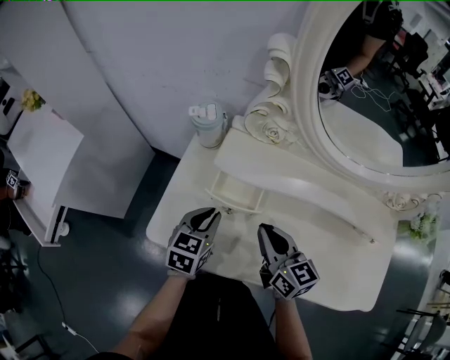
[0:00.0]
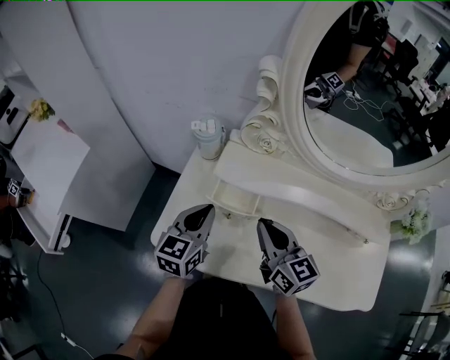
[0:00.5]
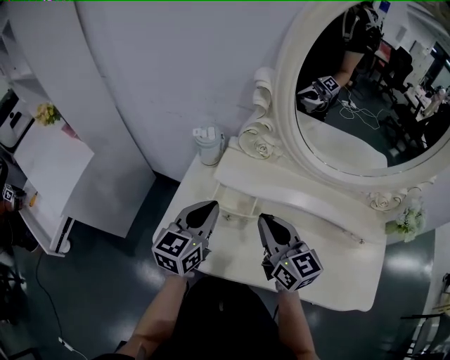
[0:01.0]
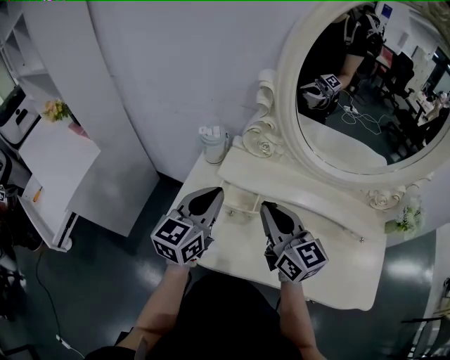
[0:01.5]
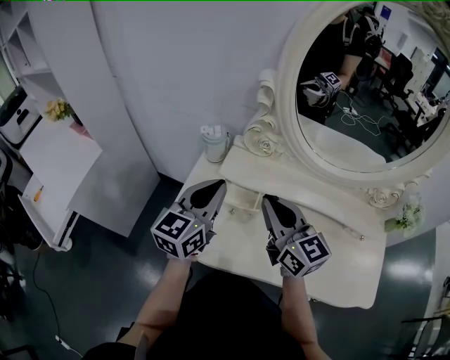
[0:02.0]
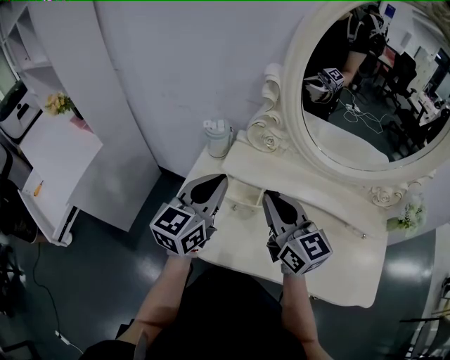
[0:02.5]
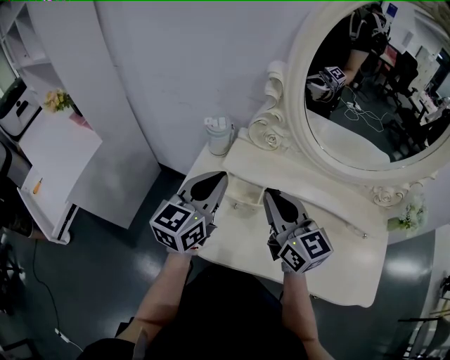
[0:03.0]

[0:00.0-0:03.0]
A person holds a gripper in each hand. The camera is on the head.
0:00.0 to 0:01.5: Both grippers move upward, some 15 cm. The left gripper swivels approximately 30 degrees.
0:01.5 to 0:03.0: There are only small adjustments of the grippers.

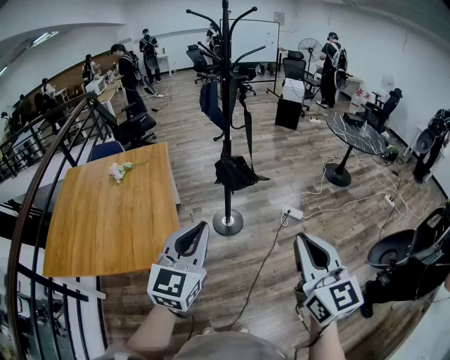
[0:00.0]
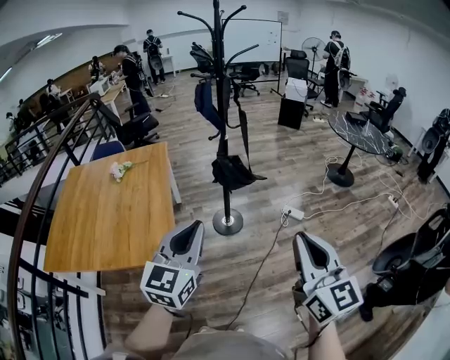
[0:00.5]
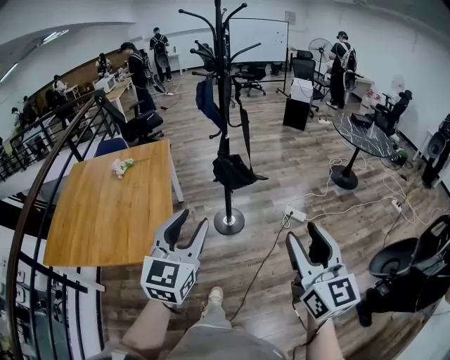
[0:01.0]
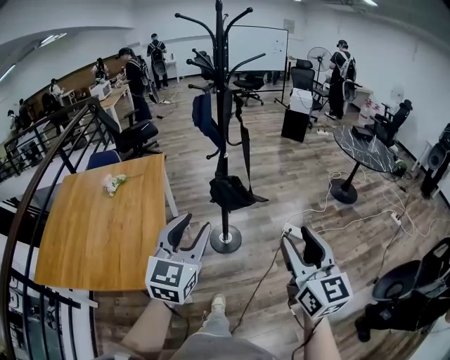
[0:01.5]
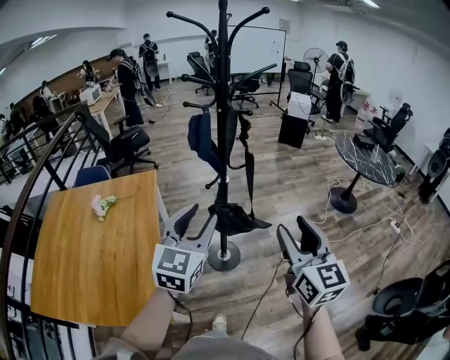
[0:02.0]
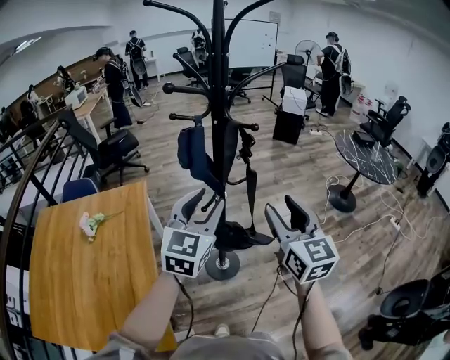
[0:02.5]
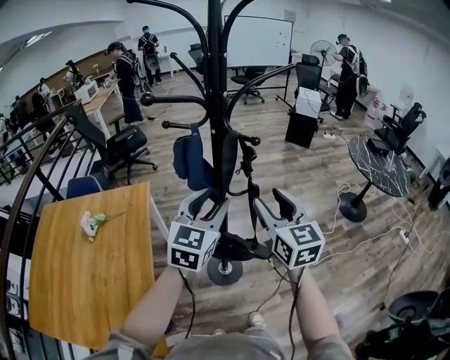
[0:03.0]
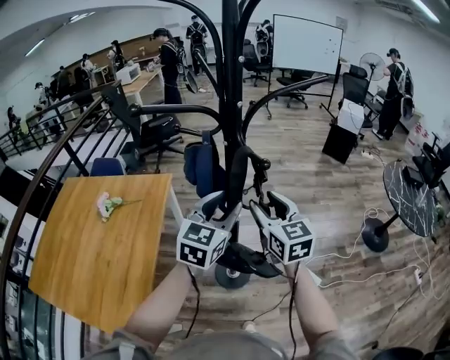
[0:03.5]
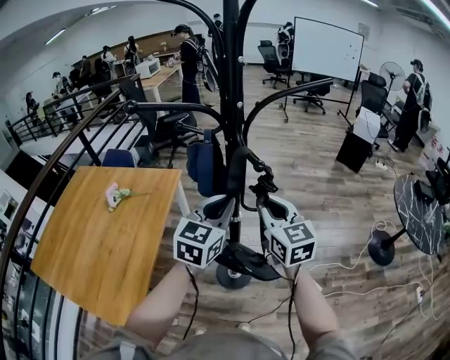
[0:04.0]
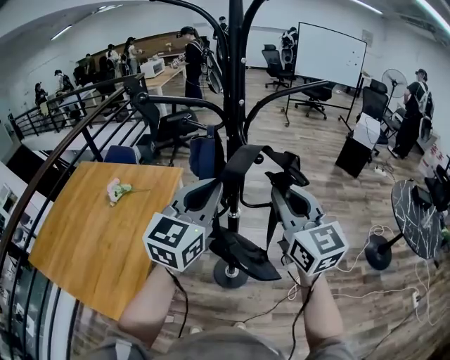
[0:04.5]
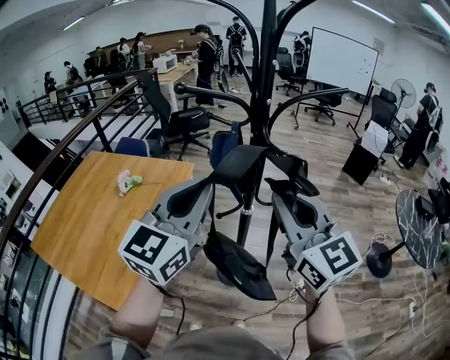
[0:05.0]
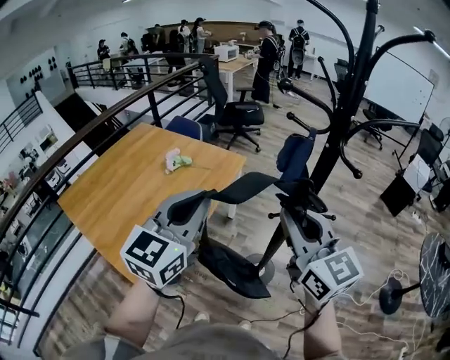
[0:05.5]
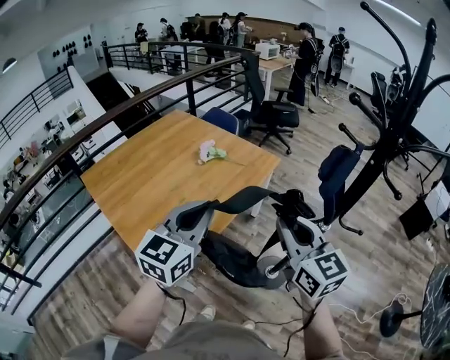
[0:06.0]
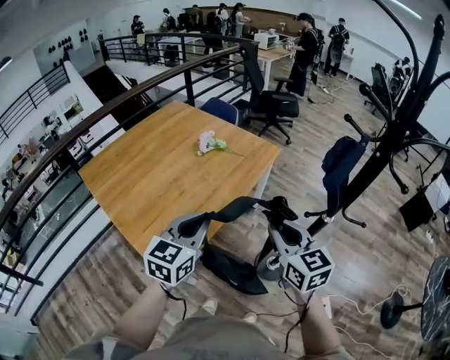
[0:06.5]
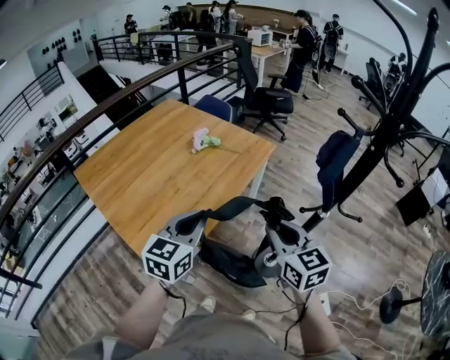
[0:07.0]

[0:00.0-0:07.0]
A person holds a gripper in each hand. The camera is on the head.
0:00.0 to 0:02.0: The two grippers go about 30 cm forward. The left gripper opens its fingers; the right gripper opens.
0:02.0 to 0:03.5: Both grippers move forward, about 30 cm. The right gripper turns by roughly 20 degrees.
0:03.5 to 0:05.0: The right gripper heads upward and backward, covering some 20 cm, rotates about 30 degrees, and closes. The left gripper travels upward, backward and to the left by roughly 20 cm, and closes its fingers.
0:05.0 to 0:07.0: Both grippers travel together to the left and downward, some 30 cm. The right gripper turns by roughly 30 degrees. Meanwhile the left gripper rotates approximately 40 degrees.

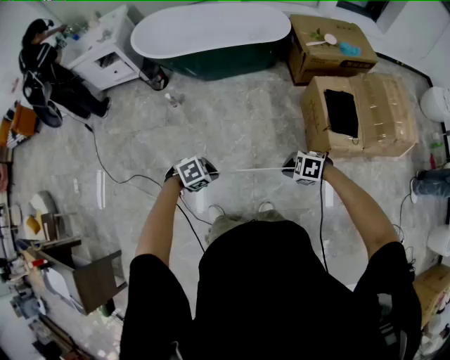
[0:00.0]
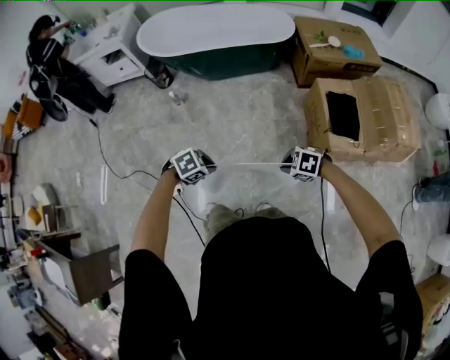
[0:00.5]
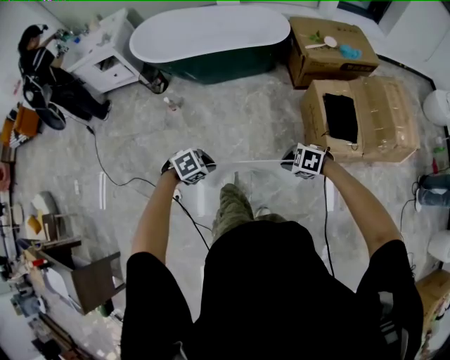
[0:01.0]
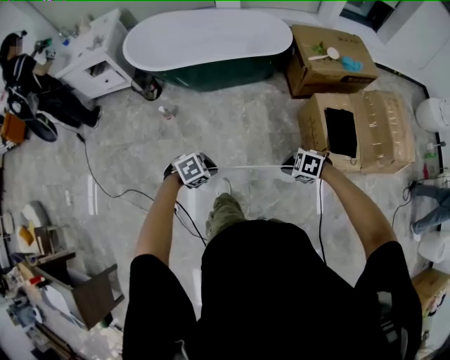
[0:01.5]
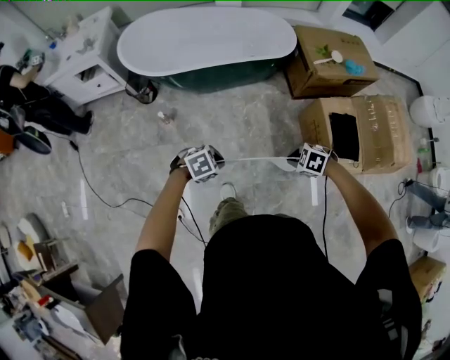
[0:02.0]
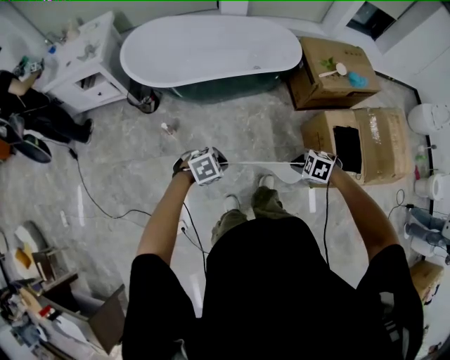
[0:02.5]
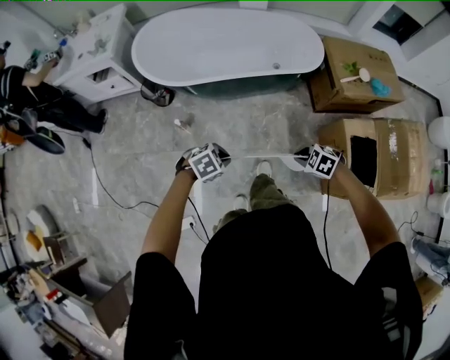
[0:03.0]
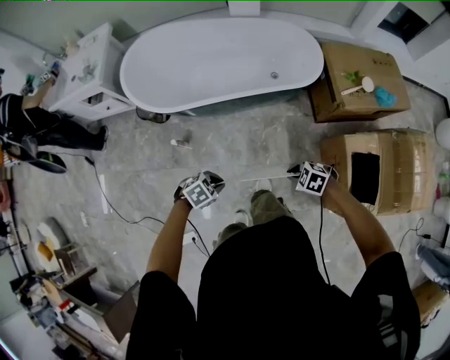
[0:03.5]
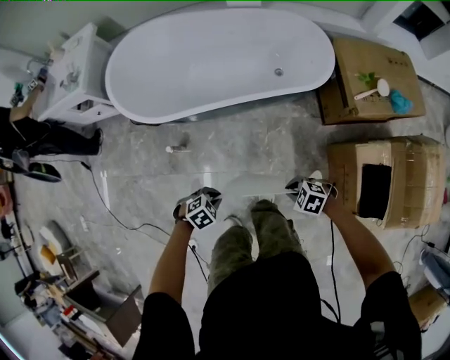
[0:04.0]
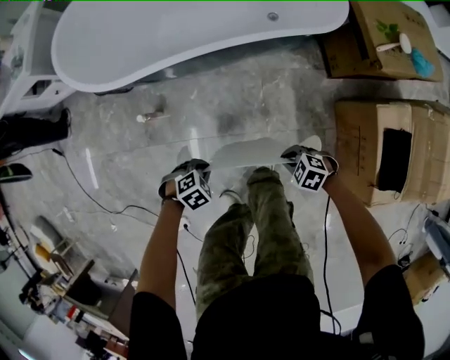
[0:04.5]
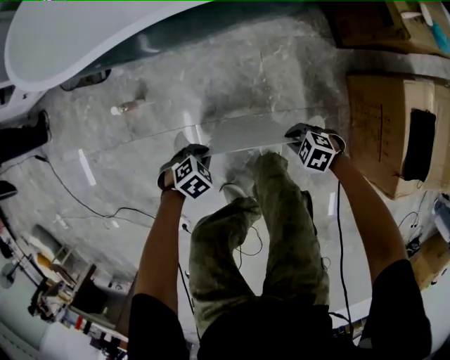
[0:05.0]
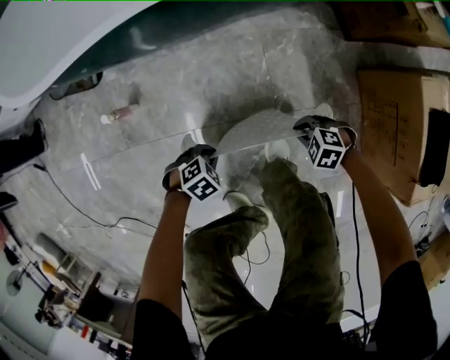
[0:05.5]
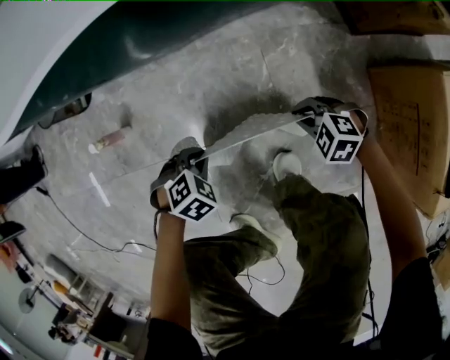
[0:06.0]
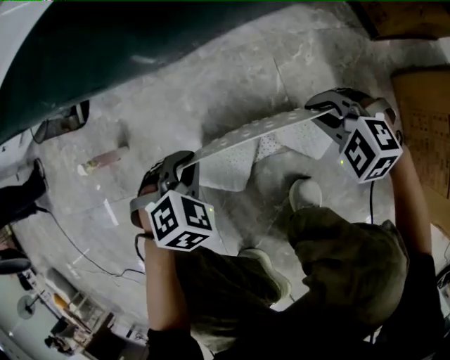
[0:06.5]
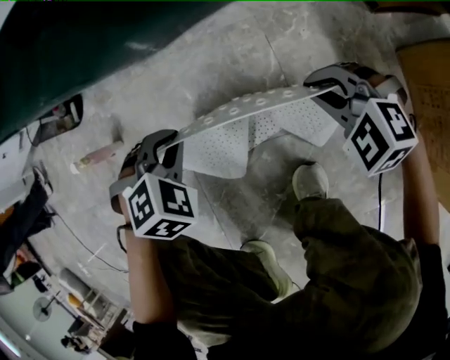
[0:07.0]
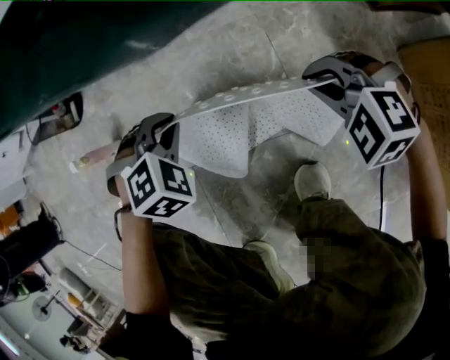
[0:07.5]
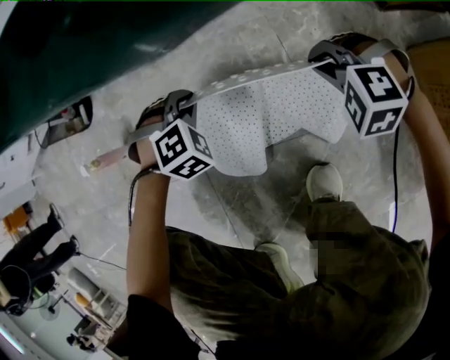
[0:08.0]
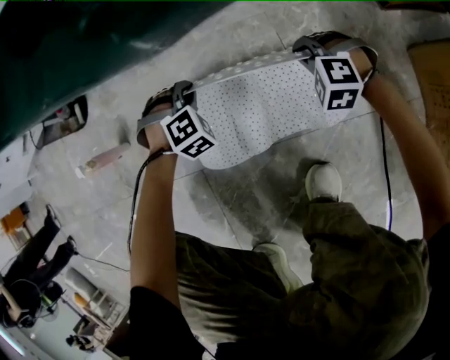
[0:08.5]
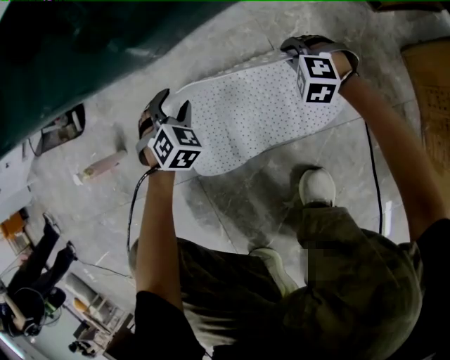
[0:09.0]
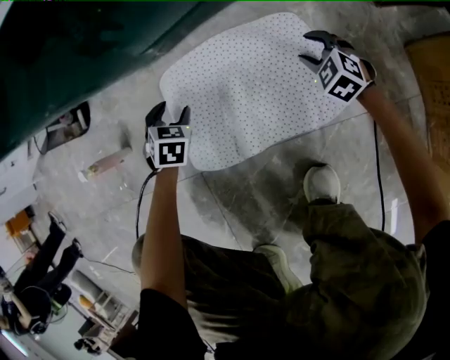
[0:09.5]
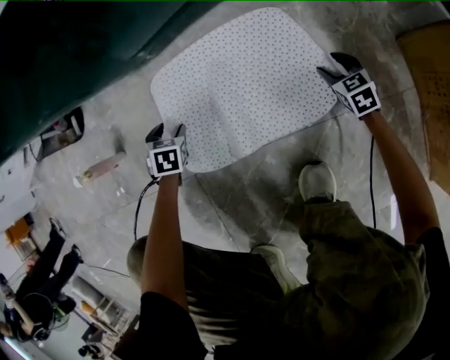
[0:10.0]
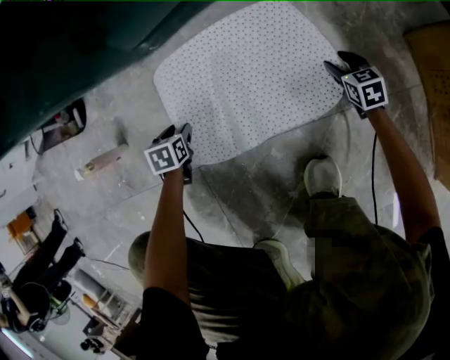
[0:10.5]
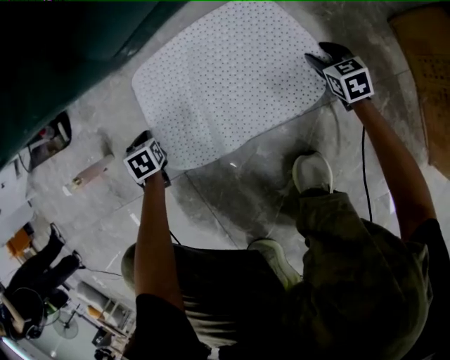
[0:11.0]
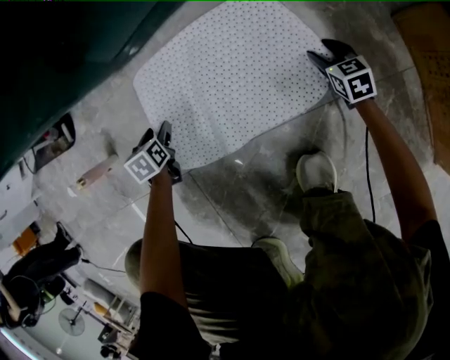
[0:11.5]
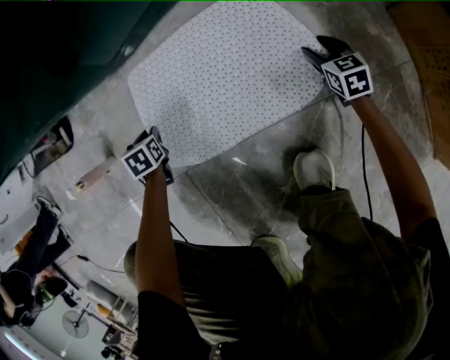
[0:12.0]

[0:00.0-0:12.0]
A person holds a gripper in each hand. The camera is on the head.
0:00.0 to 0:02.0: The left gripper moves approximately 30 cm, while the right gripper shifts by roughly 25 cm.
0:02.0 to 0:04.0: The right gripper moves some 30 cm; the left gripper changes place by about 30 cm.
0:04.0 to 0:06.0: The grippers both shift downward by some 50 cm.
0:06.0 to 0:08.0: The left gripper changes place by roughly 20 cm, and swivels approximately 30 degrees. The right gripper ends up about 10 cm from where it was, and changes its angle by approximately 30 degrees.
0:08.0 to 0:10.0: The right gripper is displaced downward and to the right by roughly 20 cm, twists roughly 70 degrees clockwise, seen from behind, and opens its fingers. Meanwhile the left gripper goes some 15 cm downward and to the left, rotates around the line of its fingers by some 60 degrees, counterclockwise from behind, and opens up.
0:10.0 to 0:12.0: The left gripper closes its fingers.

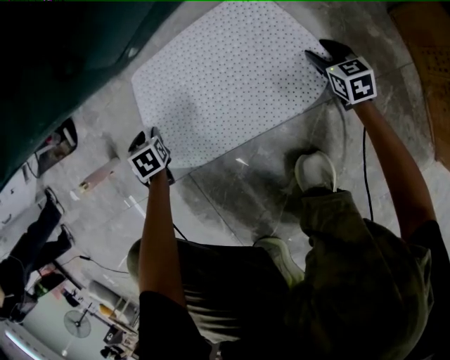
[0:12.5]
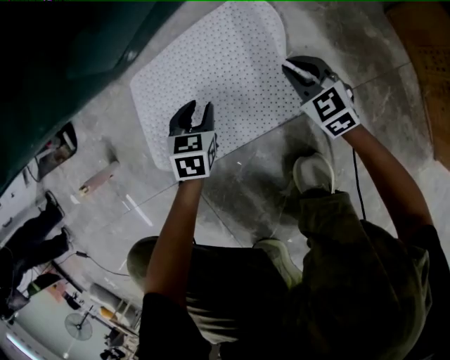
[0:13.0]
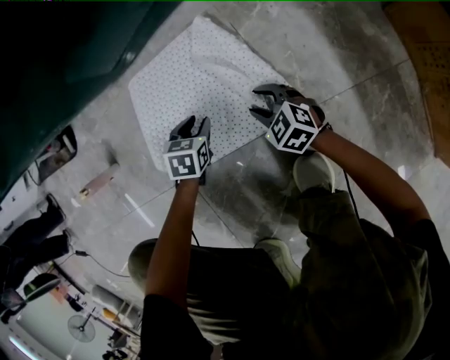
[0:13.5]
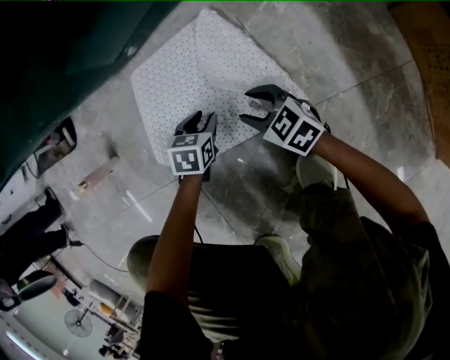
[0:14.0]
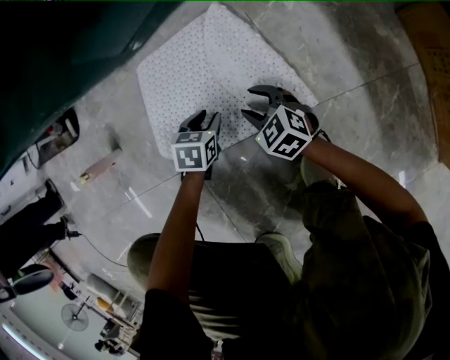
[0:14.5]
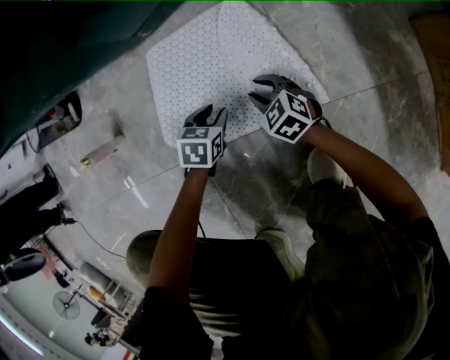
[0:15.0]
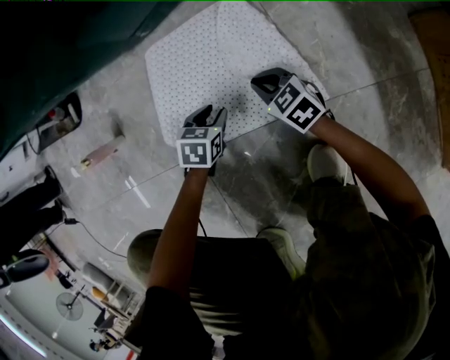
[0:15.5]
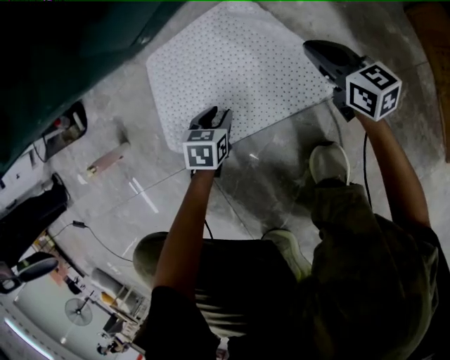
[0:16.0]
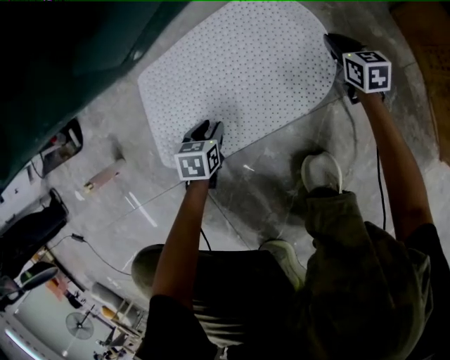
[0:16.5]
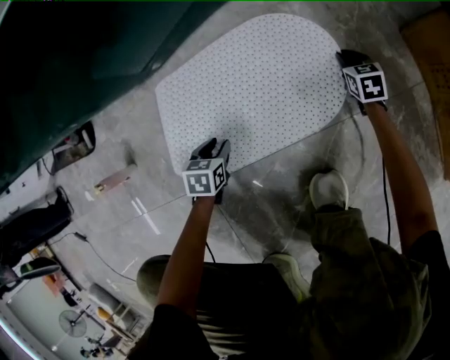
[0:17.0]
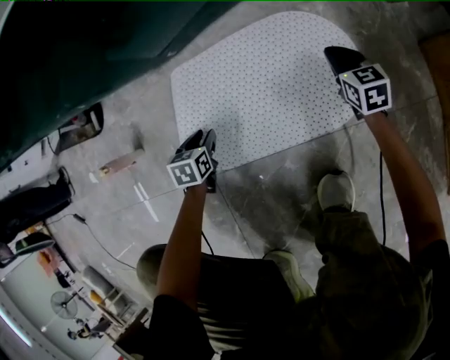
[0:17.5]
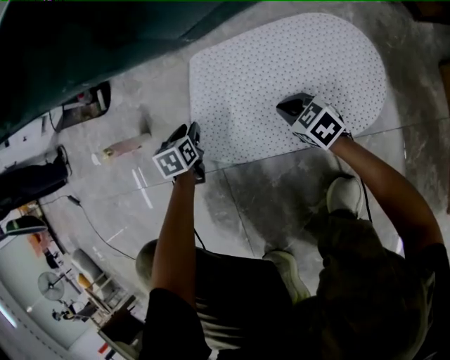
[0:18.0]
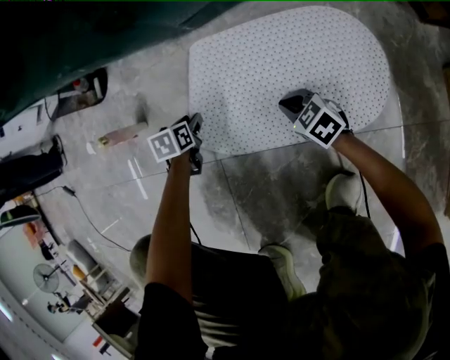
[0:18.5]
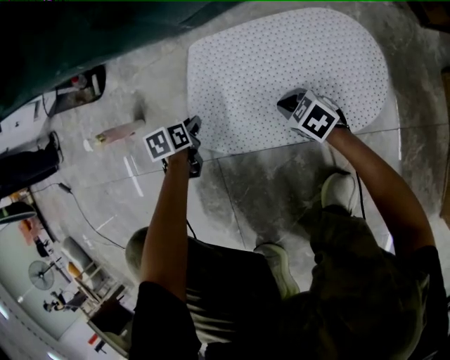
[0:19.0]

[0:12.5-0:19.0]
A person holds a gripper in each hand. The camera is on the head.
0:12.5 to 0:14.5: The right gripper heads to the left, covering approximately 25 cm, changes its angle by some 30 degrees, and closes and opens again. Meanwhile the left gripper heads to the right and backward, covering some 20 cm, and changes its angle by approximately 30 degrees.
0:14.5 to 0:17.0: The right gripper heads to the right and forward, covering roughly 35 cm, changes its angle by some 40 degrees, and closes up.
0:17.0 to 0:19.0: The right gripper shifts by approximately 35 cm, and rotates approximately 60 degrees, while the left gripper moves some 15 cm, and swivels some 30 degrees.
